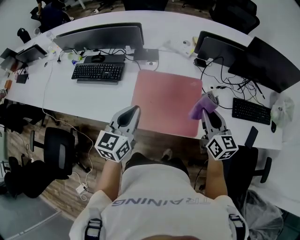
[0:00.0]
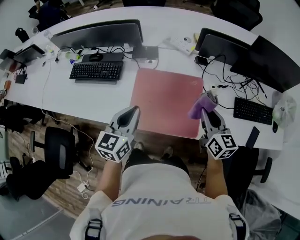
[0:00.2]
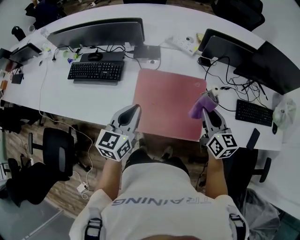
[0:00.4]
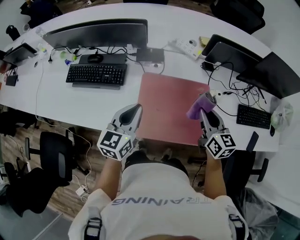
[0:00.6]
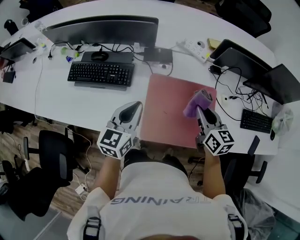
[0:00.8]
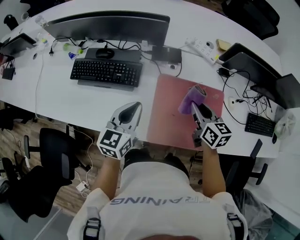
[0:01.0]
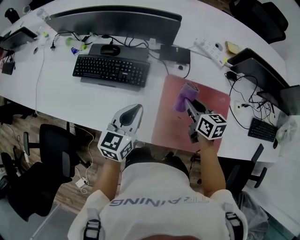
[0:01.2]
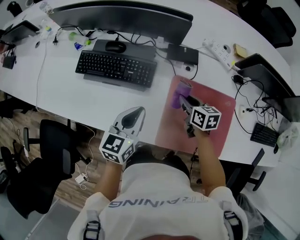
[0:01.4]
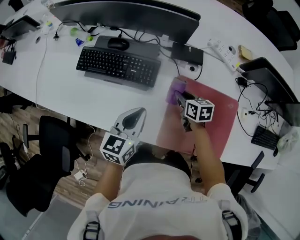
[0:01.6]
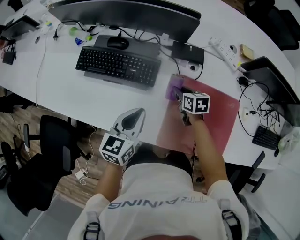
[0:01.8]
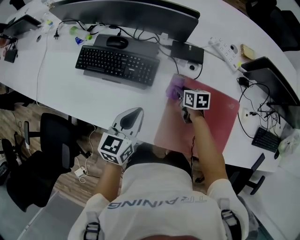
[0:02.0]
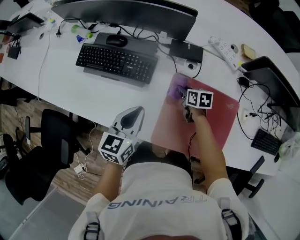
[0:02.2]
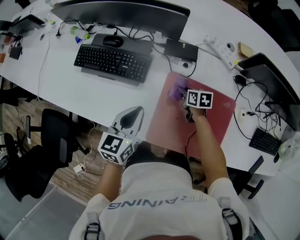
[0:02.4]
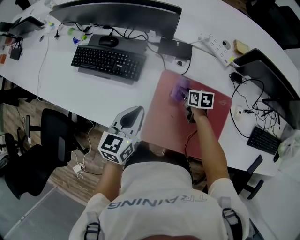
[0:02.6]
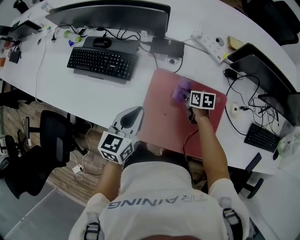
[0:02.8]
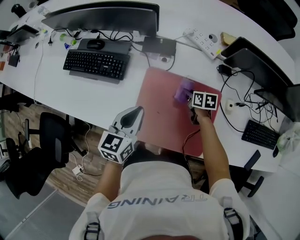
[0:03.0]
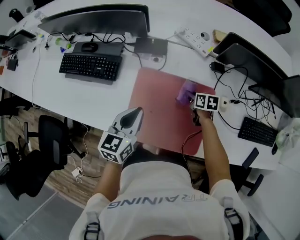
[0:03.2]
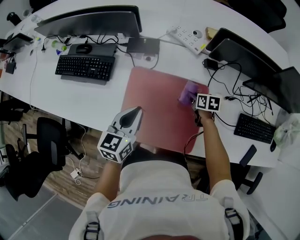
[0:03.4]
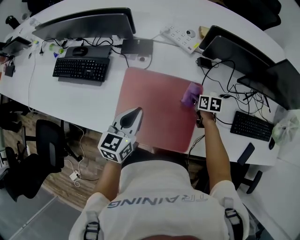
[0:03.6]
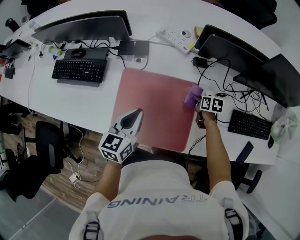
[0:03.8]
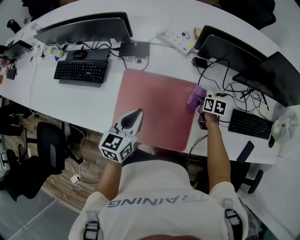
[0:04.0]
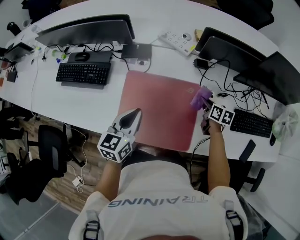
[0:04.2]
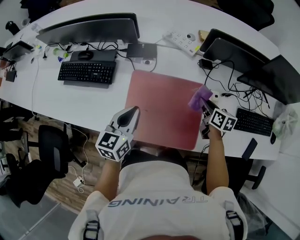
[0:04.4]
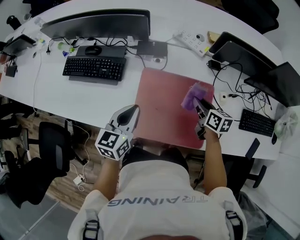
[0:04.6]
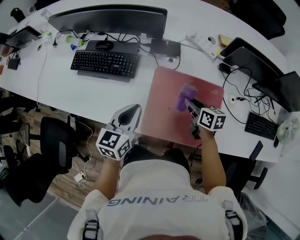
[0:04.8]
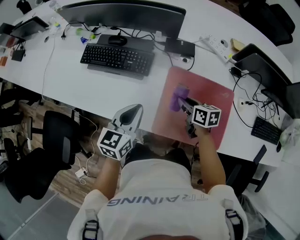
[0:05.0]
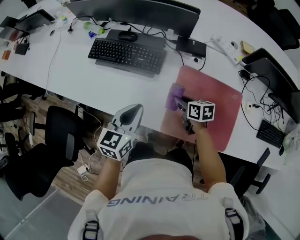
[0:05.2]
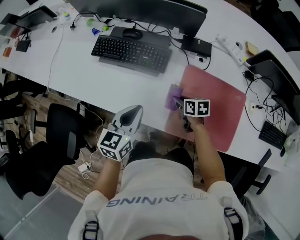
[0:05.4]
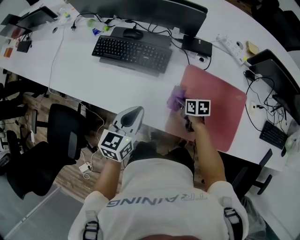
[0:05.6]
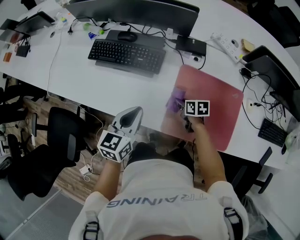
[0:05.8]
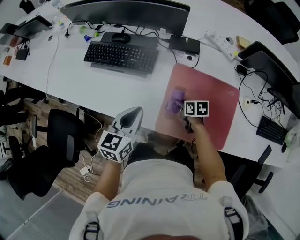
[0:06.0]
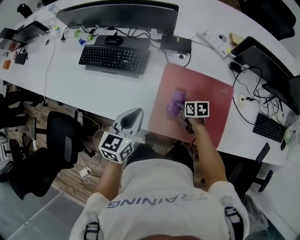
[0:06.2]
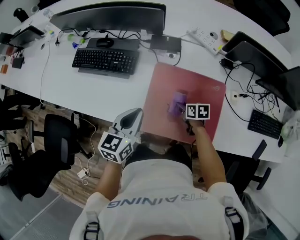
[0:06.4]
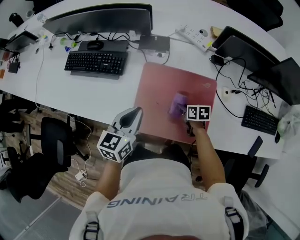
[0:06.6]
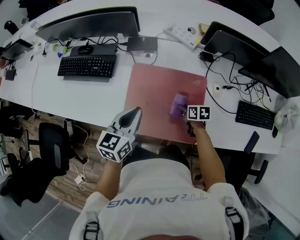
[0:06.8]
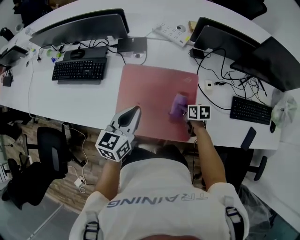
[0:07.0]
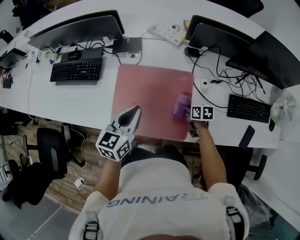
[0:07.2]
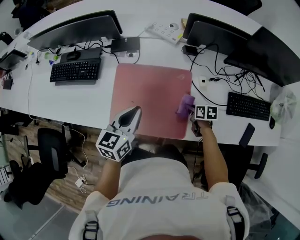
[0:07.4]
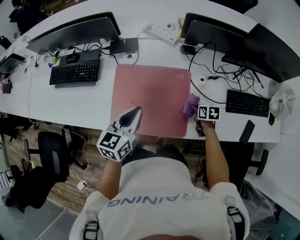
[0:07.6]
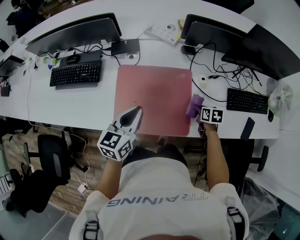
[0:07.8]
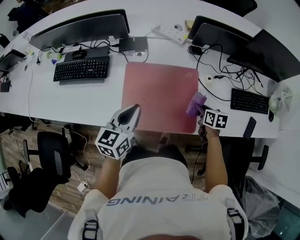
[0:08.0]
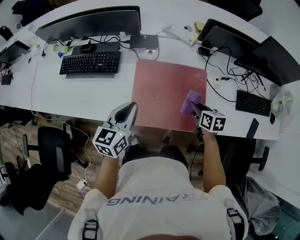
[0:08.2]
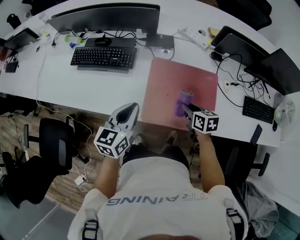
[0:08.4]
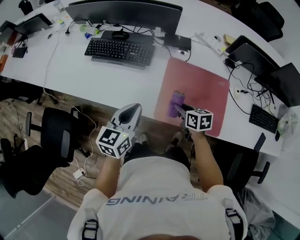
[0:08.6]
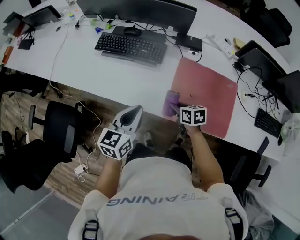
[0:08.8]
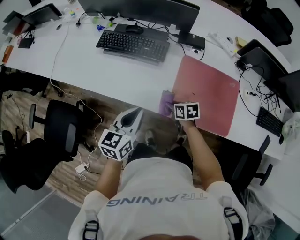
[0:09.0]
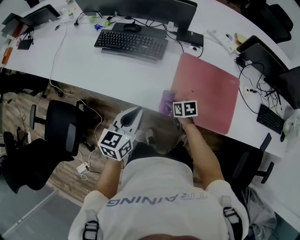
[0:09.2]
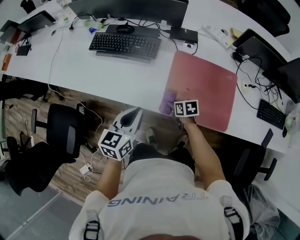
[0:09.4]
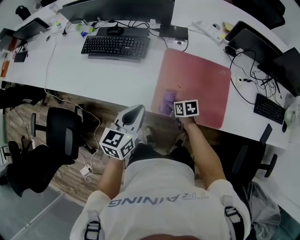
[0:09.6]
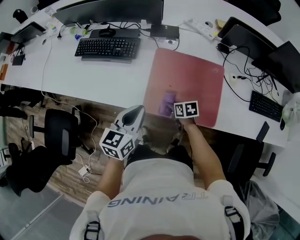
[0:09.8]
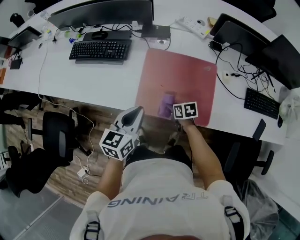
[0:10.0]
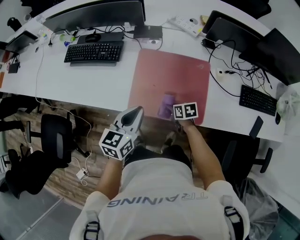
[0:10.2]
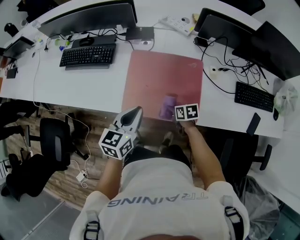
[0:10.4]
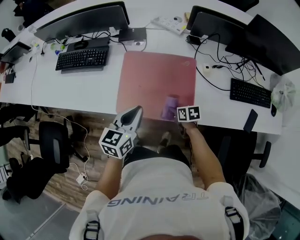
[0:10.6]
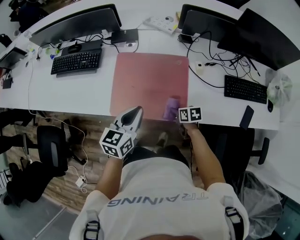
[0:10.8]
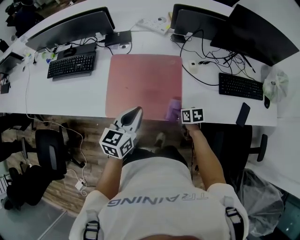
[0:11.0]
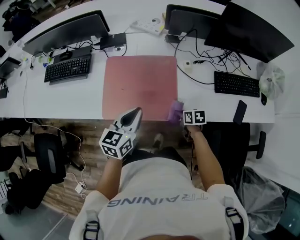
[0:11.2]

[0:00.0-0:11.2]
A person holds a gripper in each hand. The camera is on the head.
0:00.0 to 0:01.6: The left gripper travels to the left, forward and downward by some 30 cm, while the right gripper moves to the left, forward and downward, some 50 cm, and points its fingers roughly 30 degrees further downward.
0:01.6 to 0:03.2: Both grippers travel together to the right, approximately 25 cm.
0:03.2 to 0:04.8: The right gripper travels upward, to the left and backward by some 20 cm, while the left gripper goes approximately 10 cm to the left.
0:04.8 to 0:06.4: The right gripper moves downward, some 15 cm, and moves some 20 cm to the left and comes back, while the left gripper goes to the left and returns, roughly 15 cm each way.
0:06.4 to 0:08.0: The left gripper travels to the right by roughly 10 cm, while the right gripper shifts some 20 cm to the right, and turns by approximately 20 degrees.
0:08.0 to 0:09.6: The left gripper travels to the left by about 15 cm, while the right gripper goes some 35 cm to the left, and changes its angle by approximately 30 degrees.
0:09.6 to 0:11.2: The two grippers go approximately 30 cm to the right.

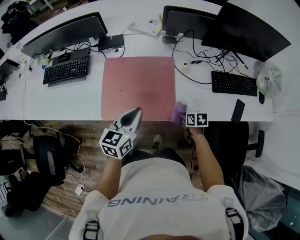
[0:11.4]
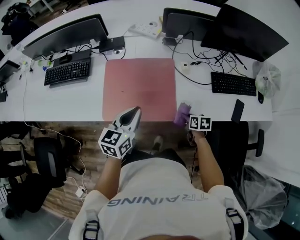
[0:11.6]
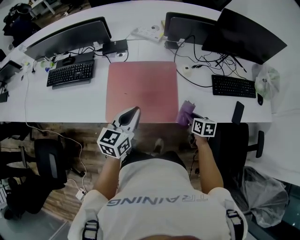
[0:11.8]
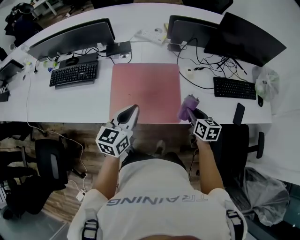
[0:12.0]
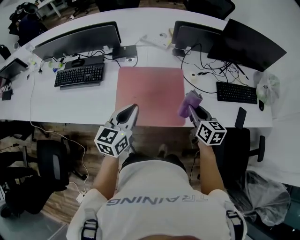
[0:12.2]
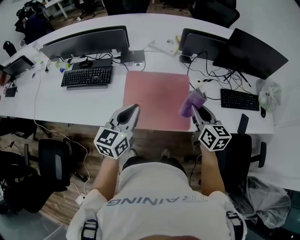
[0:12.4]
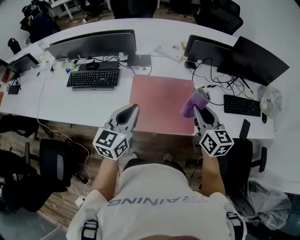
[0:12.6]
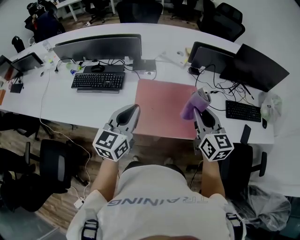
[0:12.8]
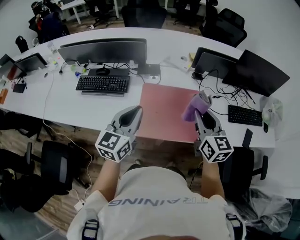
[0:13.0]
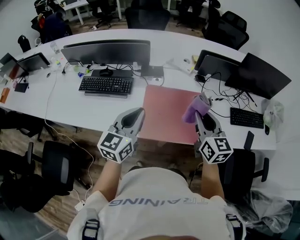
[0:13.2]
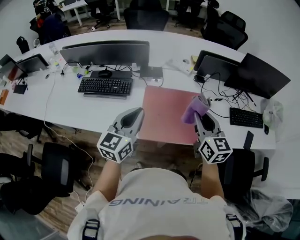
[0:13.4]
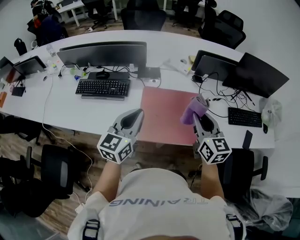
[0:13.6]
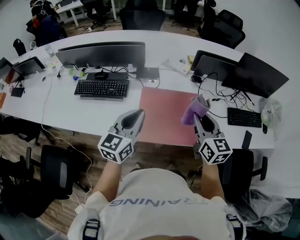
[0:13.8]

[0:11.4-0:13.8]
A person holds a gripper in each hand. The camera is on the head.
0:11.4 to 0:12.6: The right gripper shifts roughly 40 cm upward and to the left, and points its fingers some 40 degrees further upward, while the left gripper travels to the left and upward by about 20 cm.
0:12.6 to 0:13.8: The right gripper heads to the left, covering approximately 5 cm.

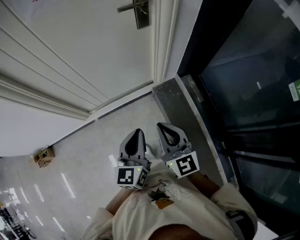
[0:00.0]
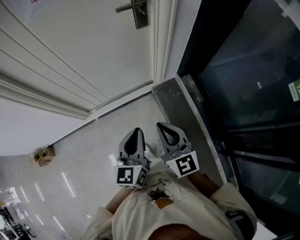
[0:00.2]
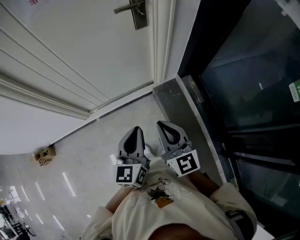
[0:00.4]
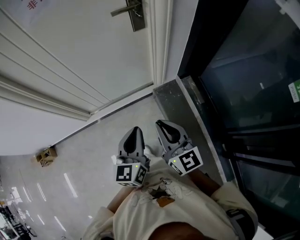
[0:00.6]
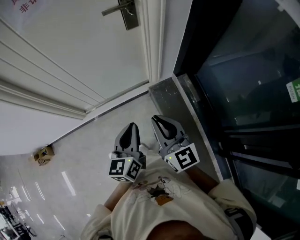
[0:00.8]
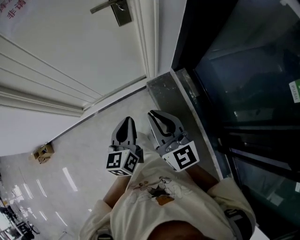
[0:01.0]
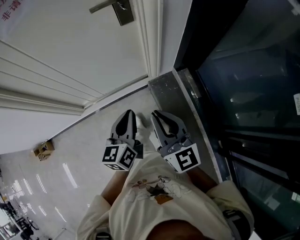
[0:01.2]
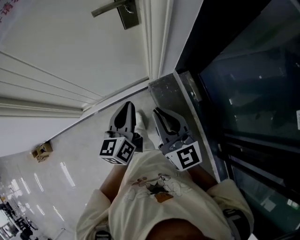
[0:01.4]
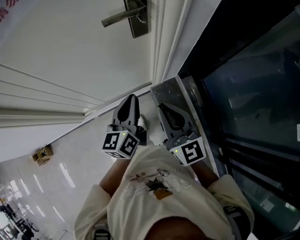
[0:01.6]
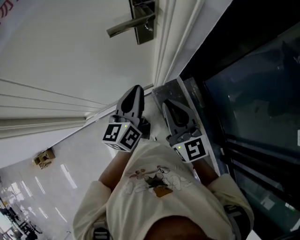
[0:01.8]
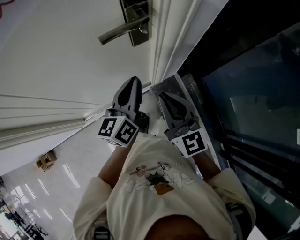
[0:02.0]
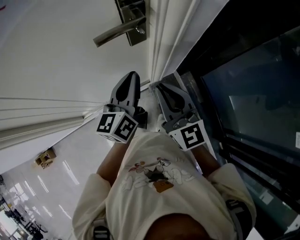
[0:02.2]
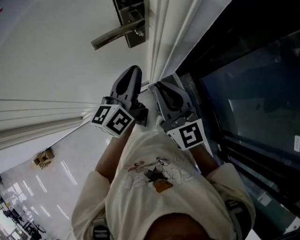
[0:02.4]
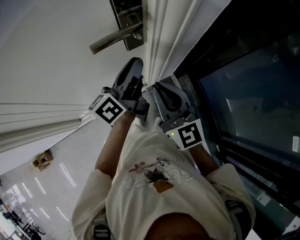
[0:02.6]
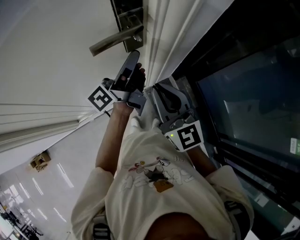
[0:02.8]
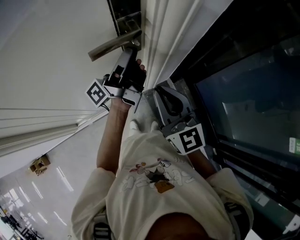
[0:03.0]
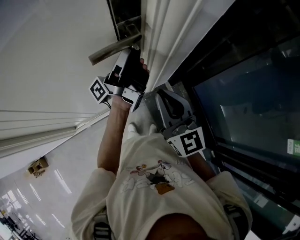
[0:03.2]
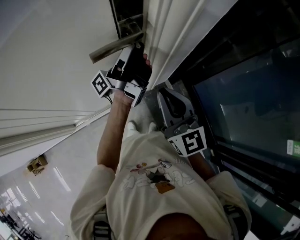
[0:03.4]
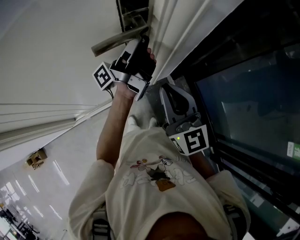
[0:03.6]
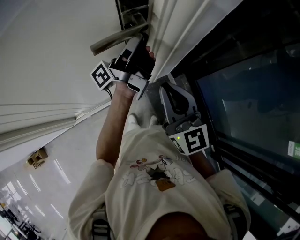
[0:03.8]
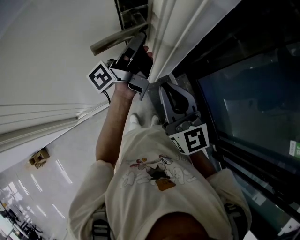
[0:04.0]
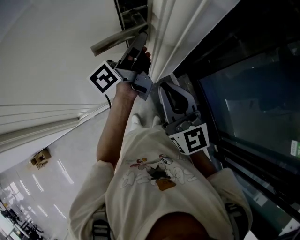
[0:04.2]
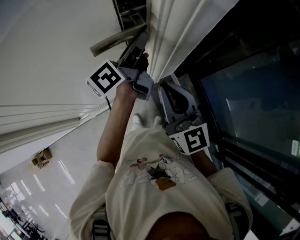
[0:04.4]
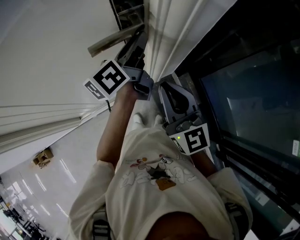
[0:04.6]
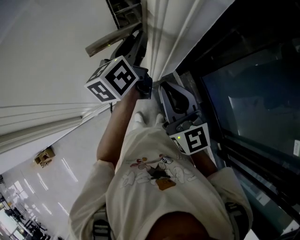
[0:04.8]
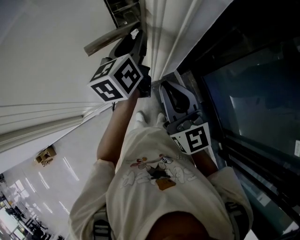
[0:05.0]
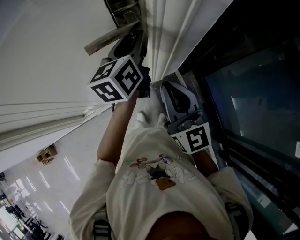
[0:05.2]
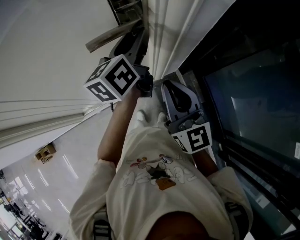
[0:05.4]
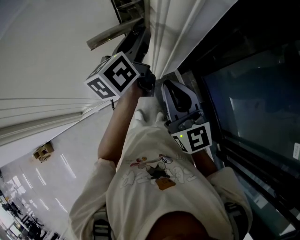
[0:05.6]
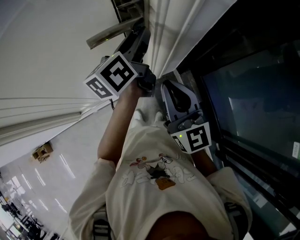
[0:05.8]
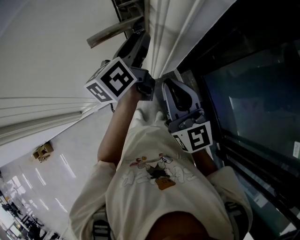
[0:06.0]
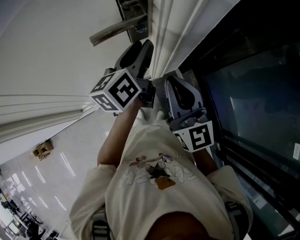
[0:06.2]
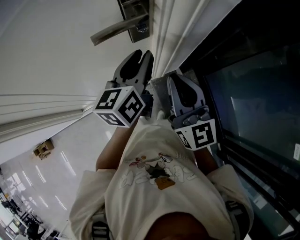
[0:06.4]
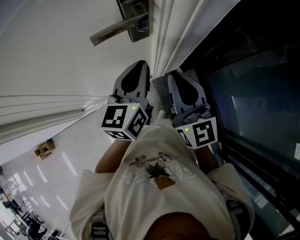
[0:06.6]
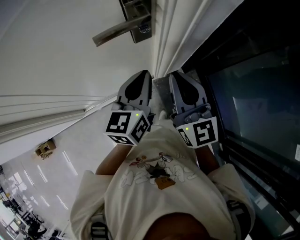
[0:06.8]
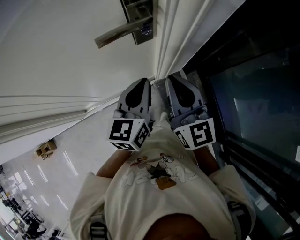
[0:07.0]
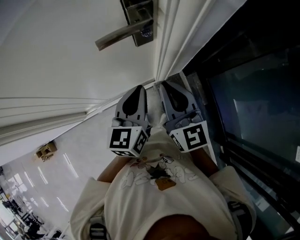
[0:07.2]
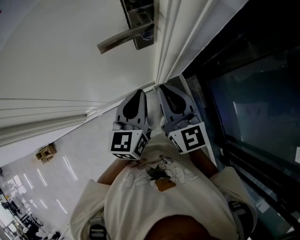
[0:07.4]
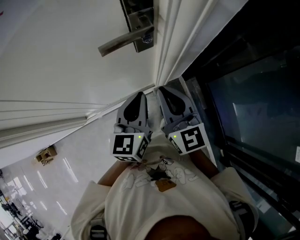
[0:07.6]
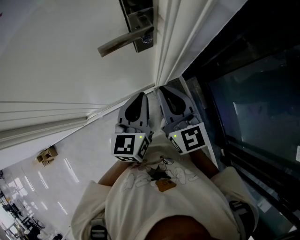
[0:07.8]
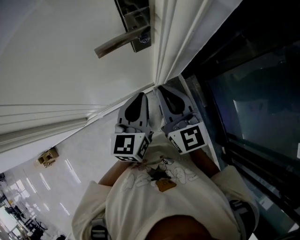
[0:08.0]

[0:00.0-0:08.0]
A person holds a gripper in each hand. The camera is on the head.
0:00.0 to 0:01.6: Both grippers travel together forward, about 25 cm.
0:01.6 to 0:03.2: The left gripper is displaced forward by some 25 cm, angles its fingers upward, by approximately 50 degrees, and opens; the right gripper is displaced forward by roughly 15 cm.
0:03.2 to 0:04.8: The left gripper angles its fingers downward, by about 50 degrees.
0:04.8 to 0:06.4: The left gripper is displaced backward by roughly 5 cm.
0:06.4 to 0:08.0: The right gripper shifts by roughly 5 cm, while the left gripper travels backward by approximately 10 cm, and closes its fingers.

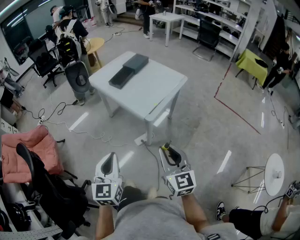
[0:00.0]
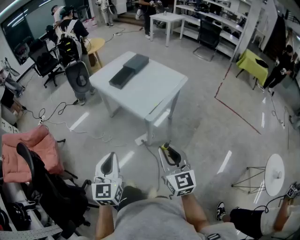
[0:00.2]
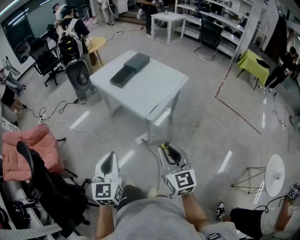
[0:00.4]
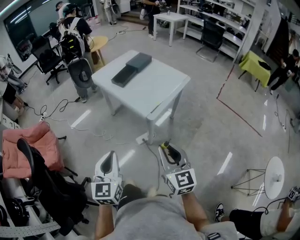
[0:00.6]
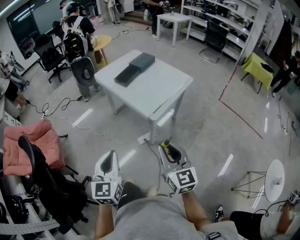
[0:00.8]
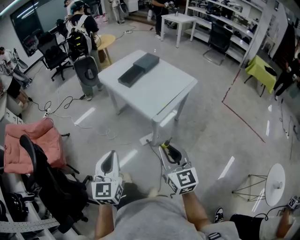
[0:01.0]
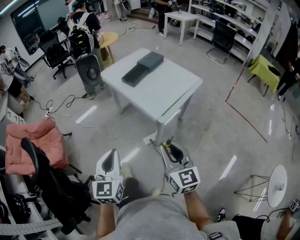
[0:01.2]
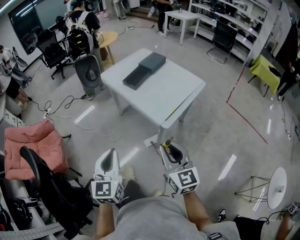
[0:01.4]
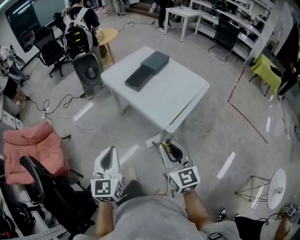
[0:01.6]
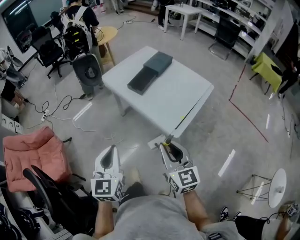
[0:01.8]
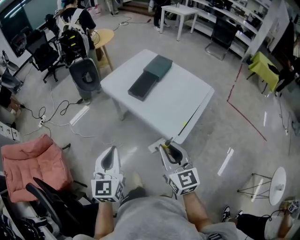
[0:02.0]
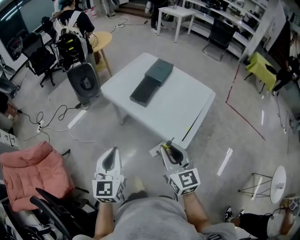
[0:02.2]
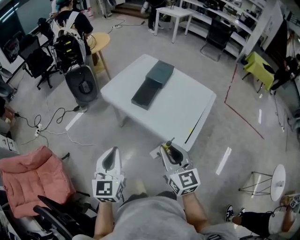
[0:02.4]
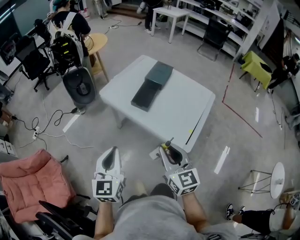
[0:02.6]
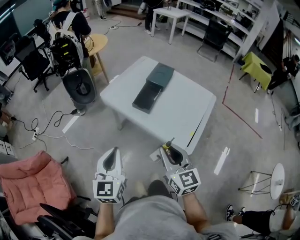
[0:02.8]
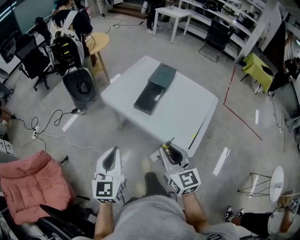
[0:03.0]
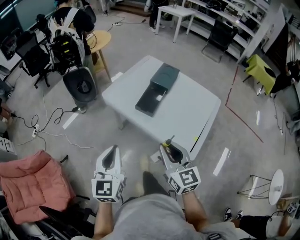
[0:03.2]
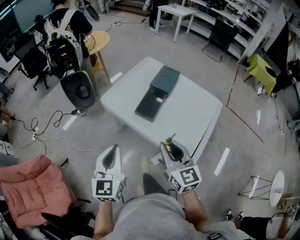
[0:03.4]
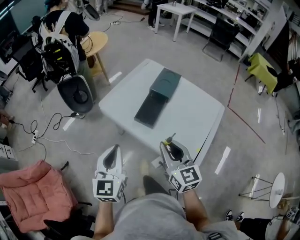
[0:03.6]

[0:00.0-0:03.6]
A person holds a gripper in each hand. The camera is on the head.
0:00.0 to 0:01.8: The grippers both shift forward and to the left by approximately 25 cm.
0:01.8 to 0:03.6: The two grippers go approximately 30 cm forward.
